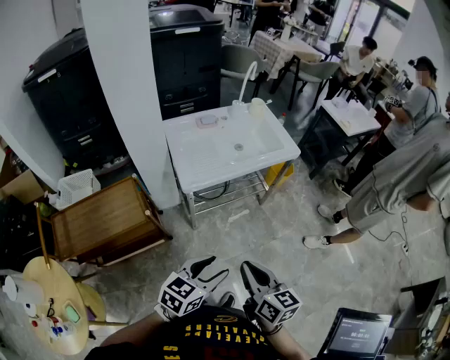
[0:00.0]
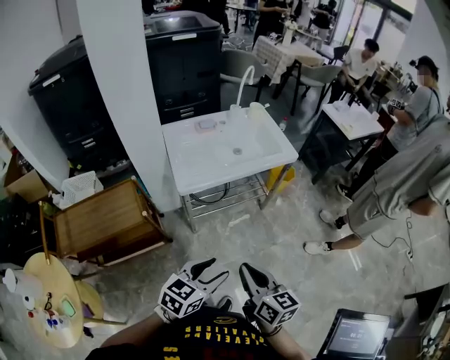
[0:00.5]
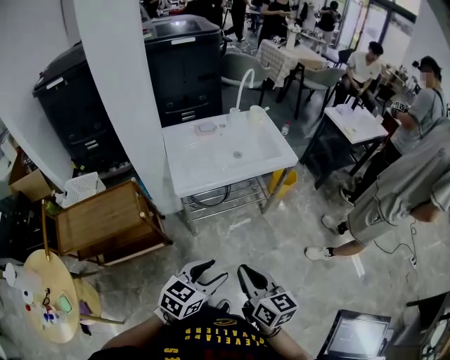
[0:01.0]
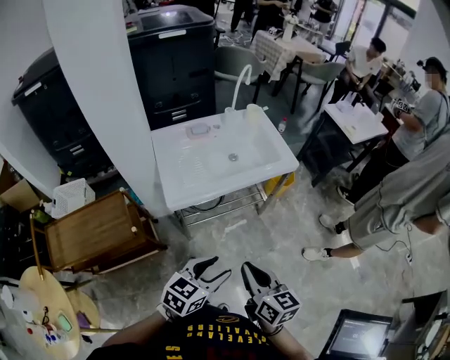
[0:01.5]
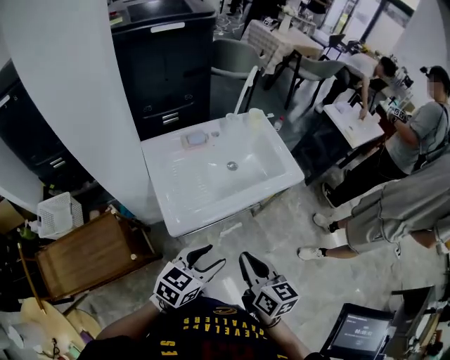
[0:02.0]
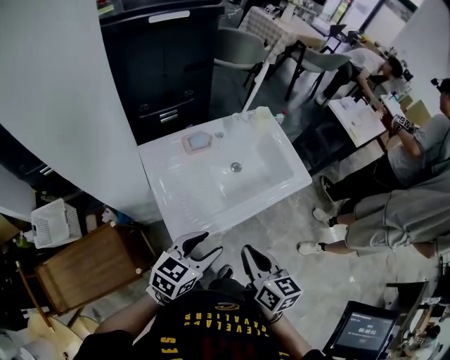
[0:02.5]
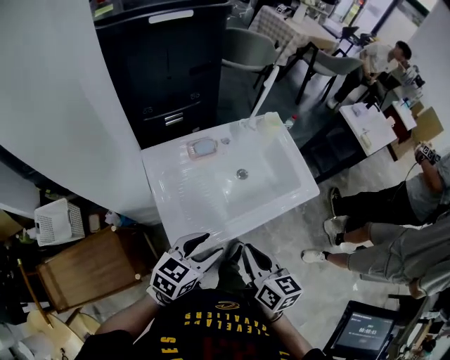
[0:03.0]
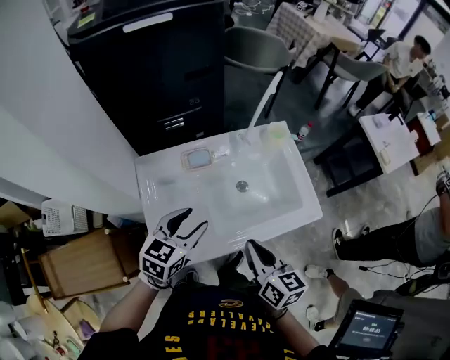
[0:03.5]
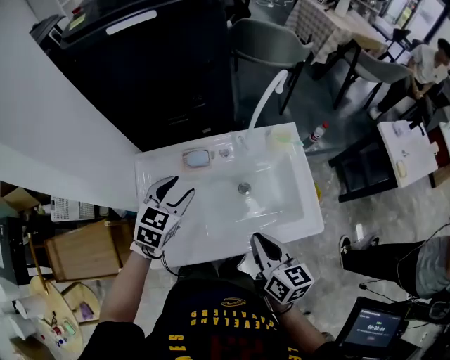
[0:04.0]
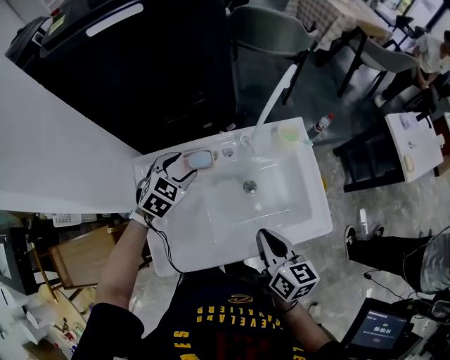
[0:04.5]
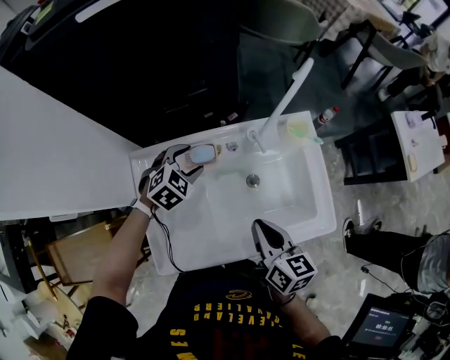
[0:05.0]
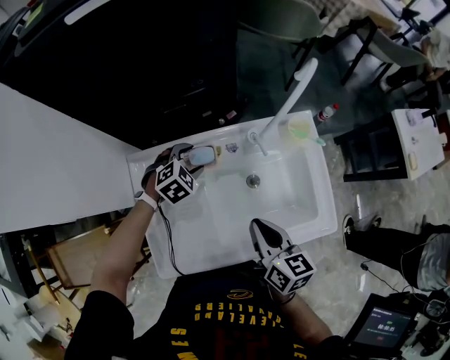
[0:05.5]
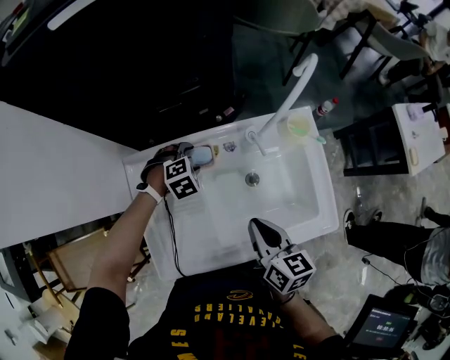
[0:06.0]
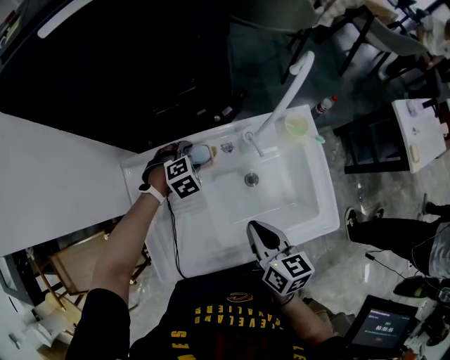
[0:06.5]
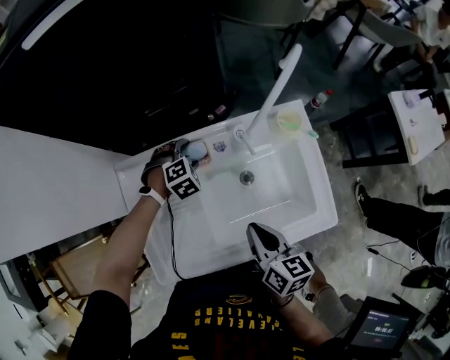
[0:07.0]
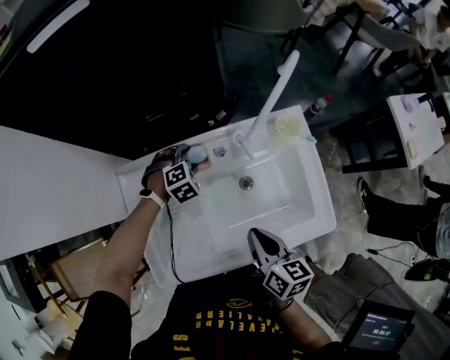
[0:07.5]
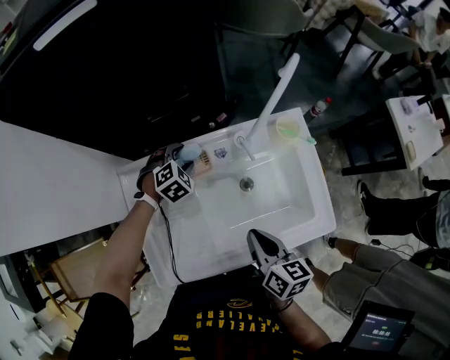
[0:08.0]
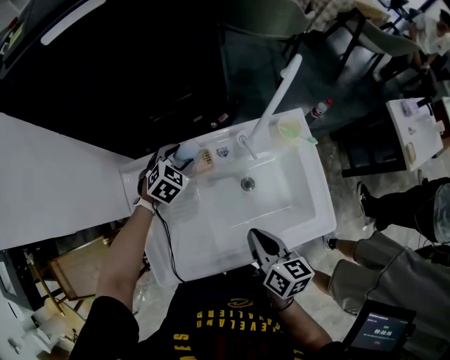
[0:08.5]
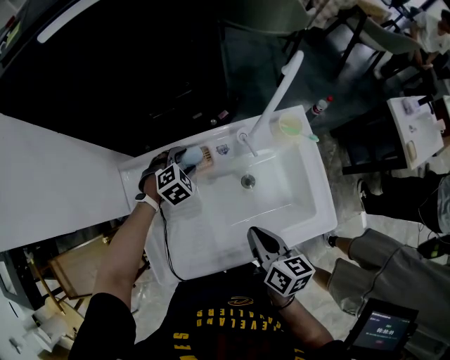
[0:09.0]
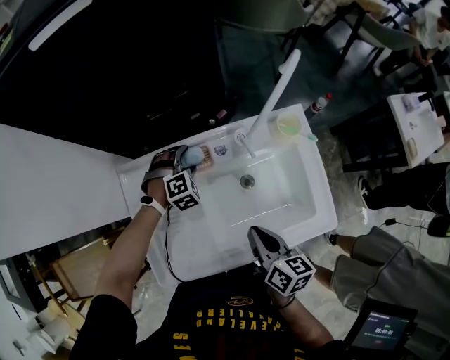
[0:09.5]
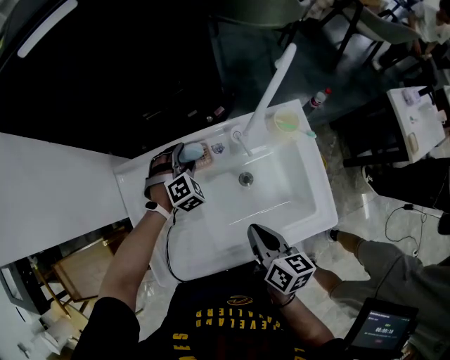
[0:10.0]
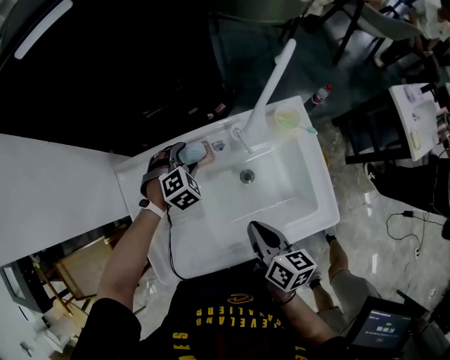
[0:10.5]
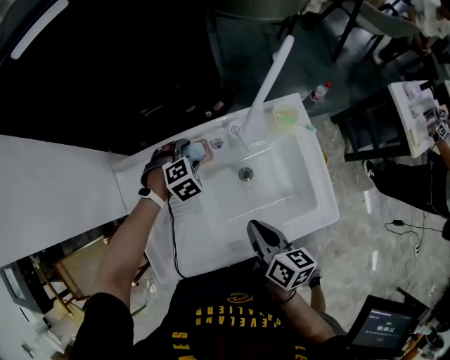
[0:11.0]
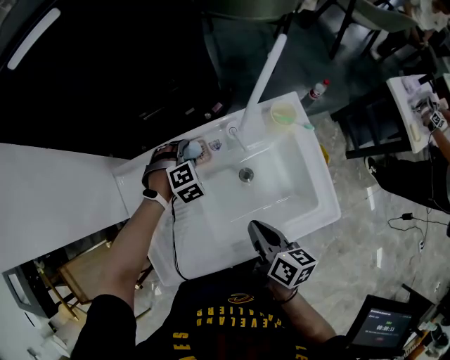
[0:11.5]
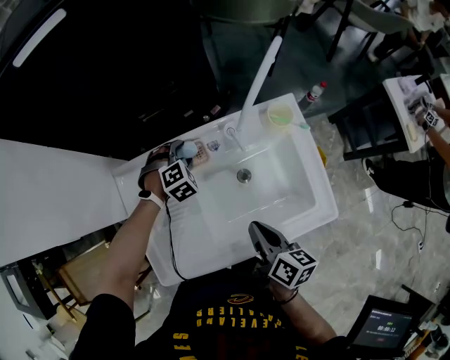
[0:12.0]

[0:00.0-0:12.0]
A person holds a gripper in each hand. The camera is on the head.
0:00.0 to 0:02.0: Both grippers move forward, about 25 cm.
0:02.0 to 0:04.0: The left gripper moves approximately 40 cm, and turns by some 30 degrees, while the right gripper shifts by some 30 cm.
0:04.0 to 0:06.0: The left gripper shifts about 25 cm downward and forward, and tips its fingers downward by about 40 degrees. The right gripper is displaced forward and to the left by about 10 cm.
0:06.0 to 0:08.0: The grippers move only a little.
0:10.0 to 0:12.0: The grippers make only small movements.

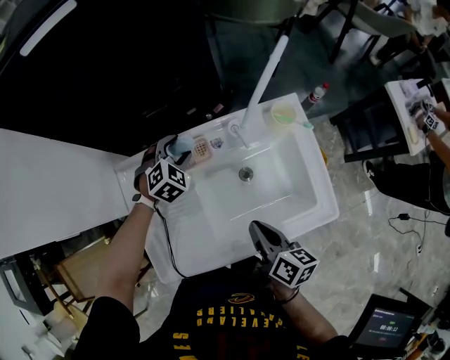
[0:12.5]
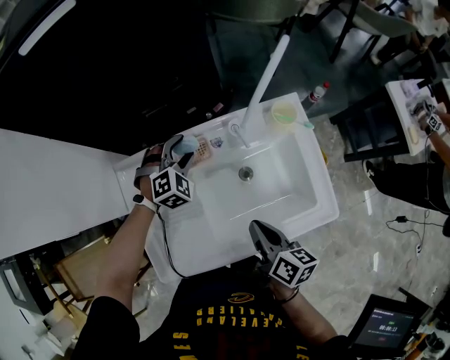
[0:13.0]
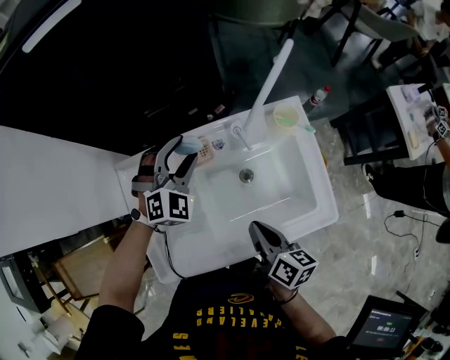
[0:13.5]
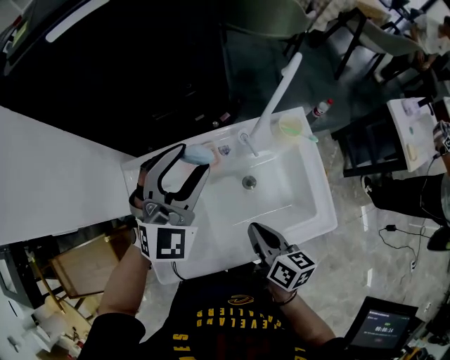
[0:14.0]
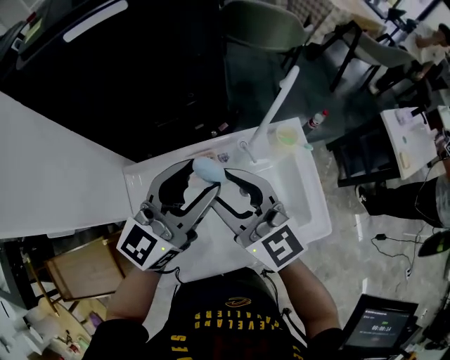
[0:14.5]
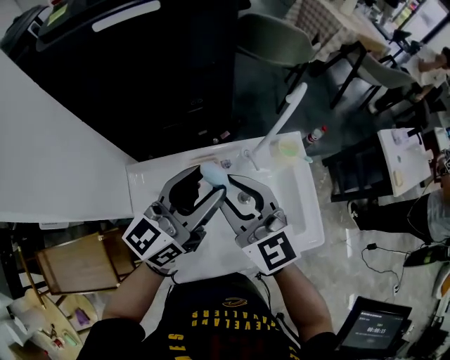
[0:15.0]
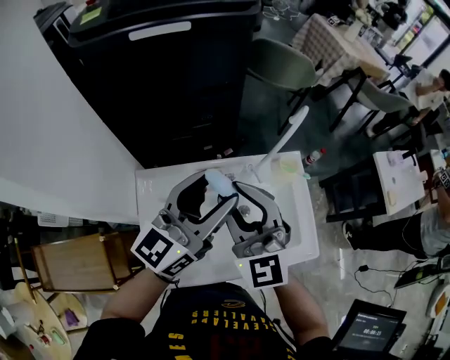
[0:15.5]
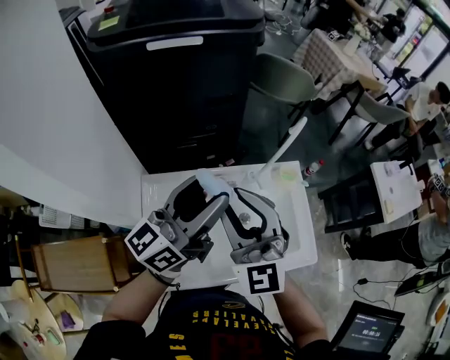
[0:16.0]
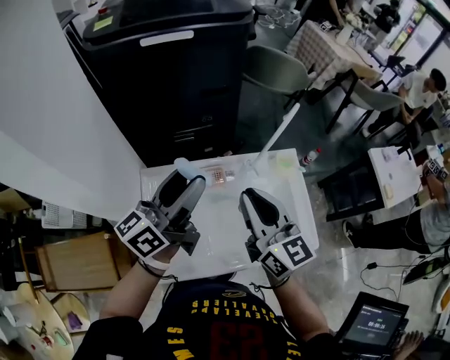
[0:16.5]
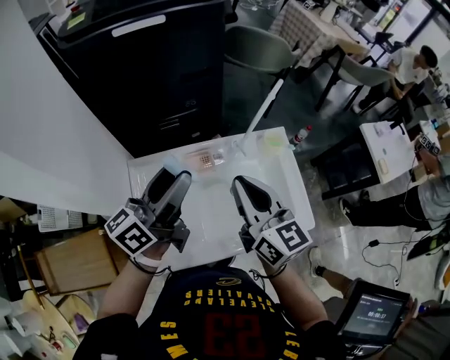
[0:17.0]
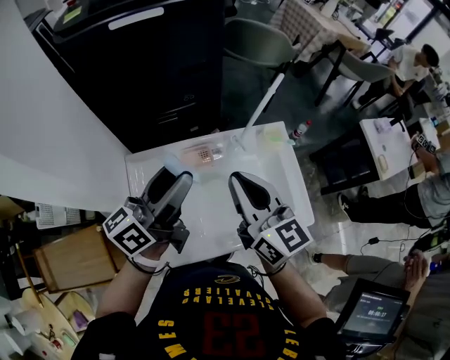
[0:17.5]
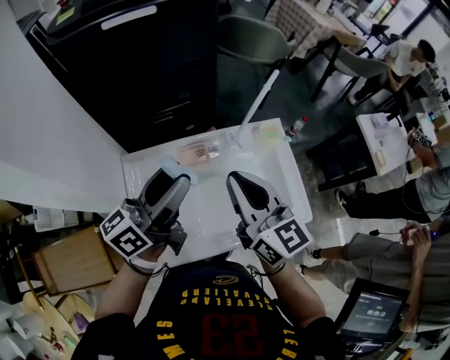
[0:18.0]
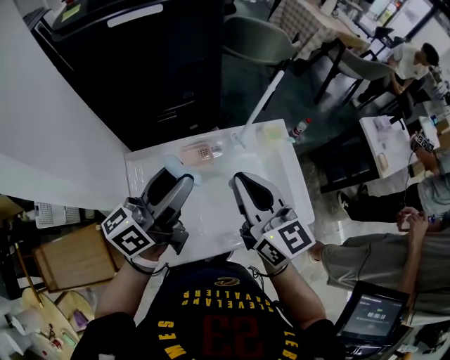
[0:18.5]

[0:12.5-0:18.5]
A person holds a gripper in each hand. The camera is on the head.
0:12.5 to 0:14.5: The left gripper travels upward by some 30 cm, and tips its fingers upward by some 60 degrees, while the right gripper goes about 25 cm upward, forward and to the left, twists approximately 60 degrees counterclockwise, seen from behind, and opens.
0:14.5 to 0:16.5: The left gripper shifts about 10 cm to the left, and changes its angle by some 30 degrees. The right gripper ends up about 5 cm from where it was, and closes its fingers.
0:16.5 to 0:18.5: The grippers move only a little.

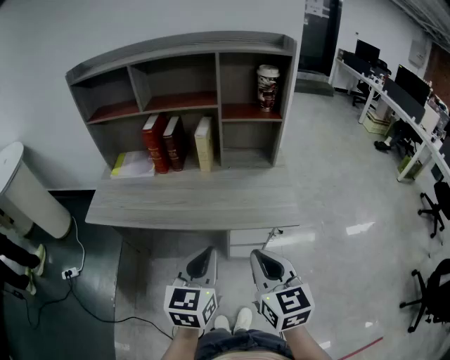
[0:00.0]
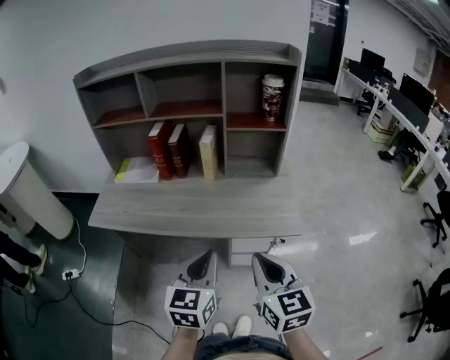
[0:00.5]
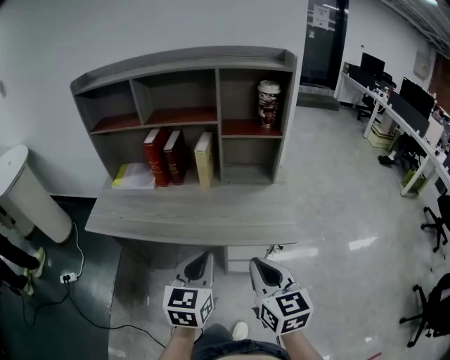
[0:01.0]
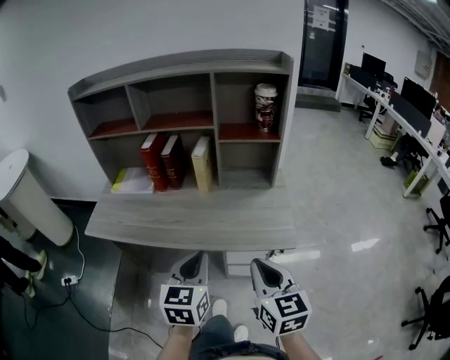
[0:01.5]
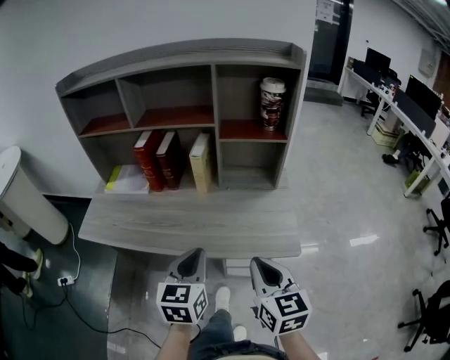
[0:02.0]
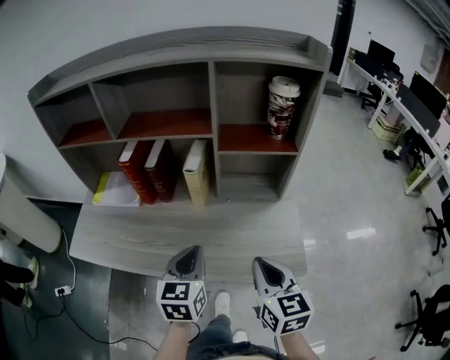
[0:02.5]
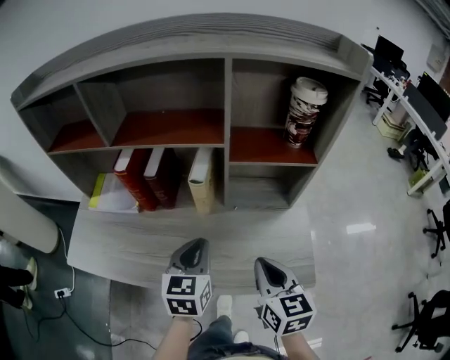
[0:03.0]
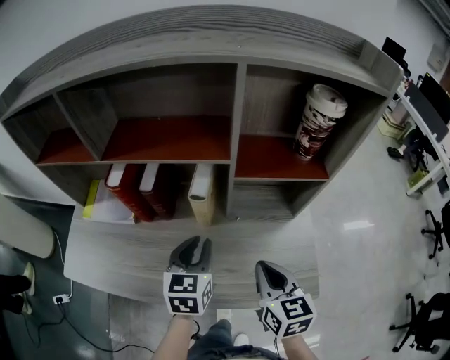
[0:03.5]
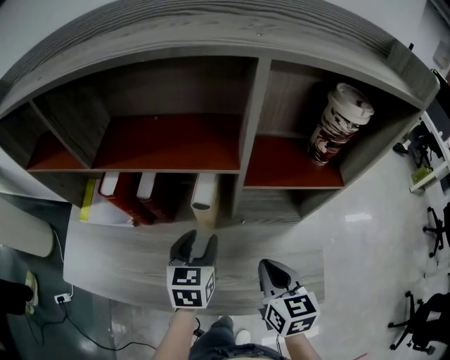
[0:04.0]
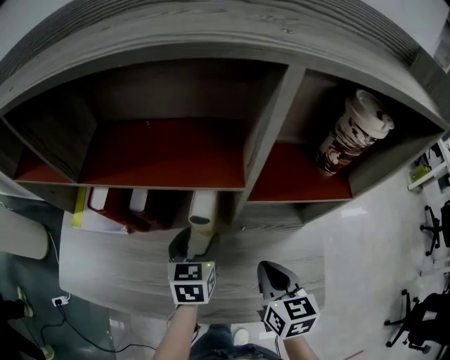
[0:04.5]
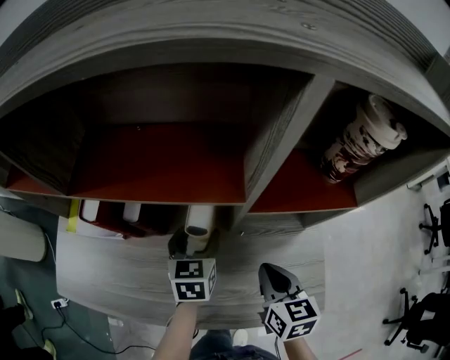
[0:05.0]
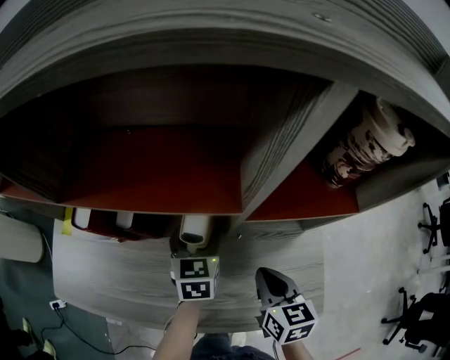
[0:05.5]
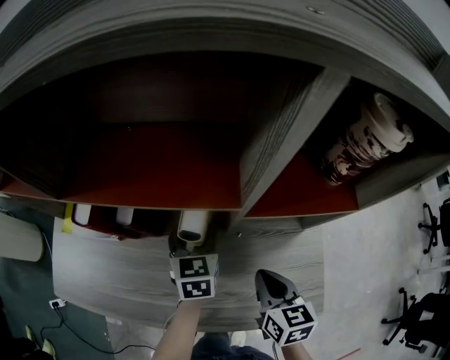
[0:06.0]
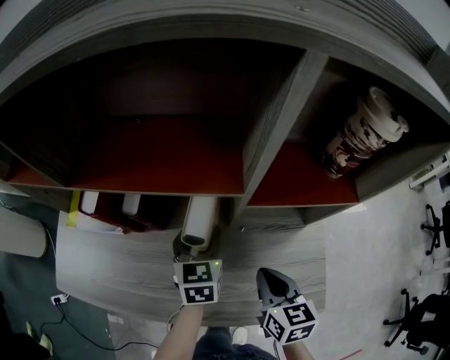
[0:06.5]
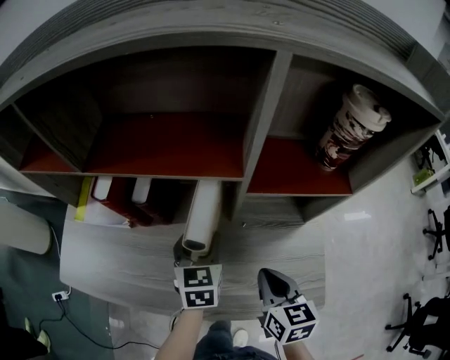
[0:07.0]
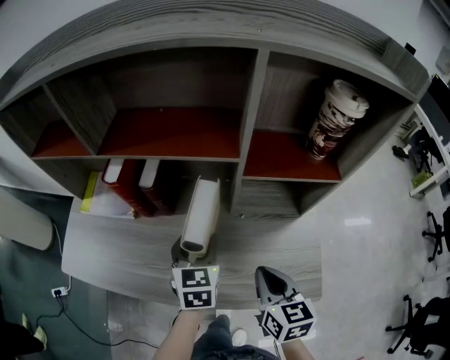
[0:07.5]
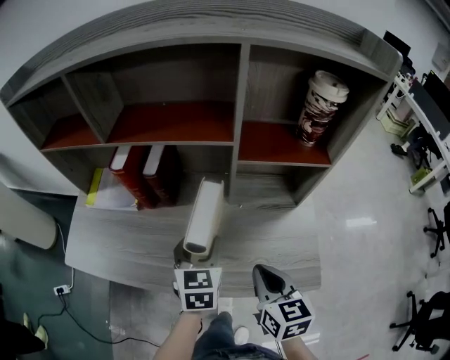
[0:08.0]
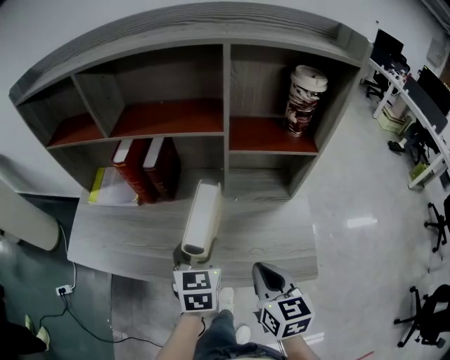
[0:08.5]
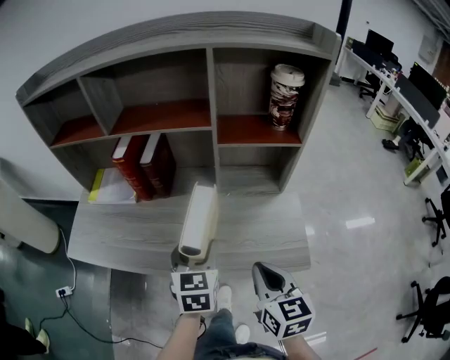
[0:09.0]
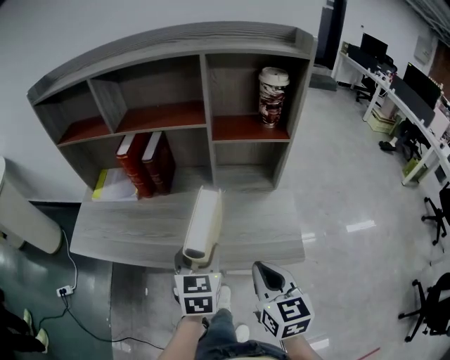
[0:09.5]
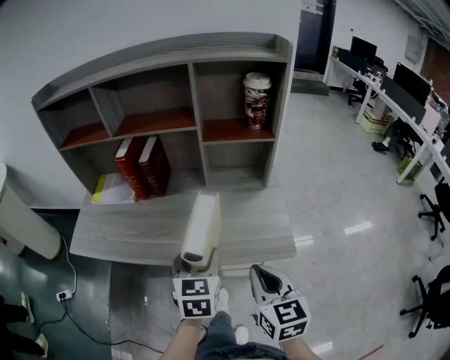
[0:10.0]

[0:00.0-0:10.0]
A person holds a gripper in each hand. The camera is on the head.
0:00.0 to 0:02.0: The grippers both shift forward by some 10 cm.
0:02.0 to 0:04.0: Both grippers travel together forward, some 30 cm. The left gripper opens its fingers.
0:04.0 to 0:06.0: The right gripper moves roughly 5 cm. Meanwhile the left gripper moves forward, roughly 10 cm.
0:06.0 to 0:08.0: The grippers both shift backward by some 15 cm.
0:08.0 to 0:10.0: Both grippers move backward, approximately 20 cm.
